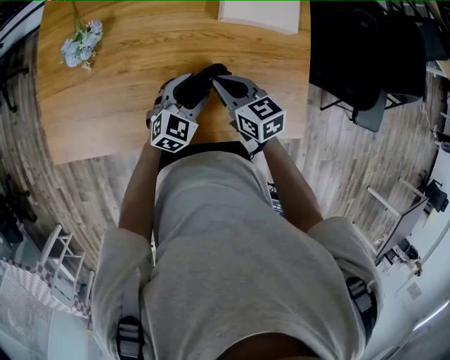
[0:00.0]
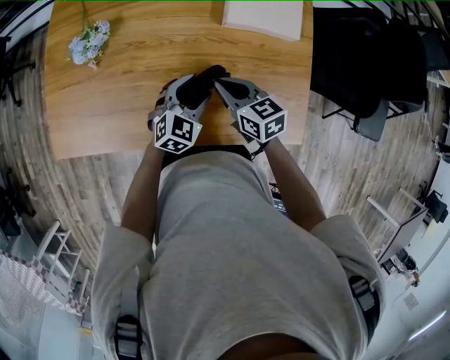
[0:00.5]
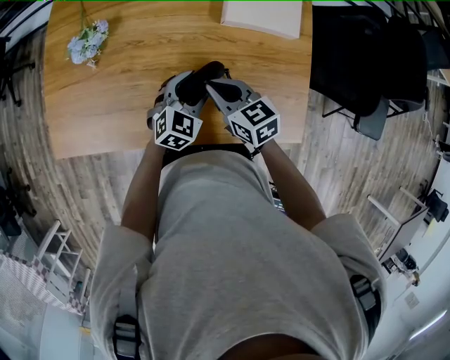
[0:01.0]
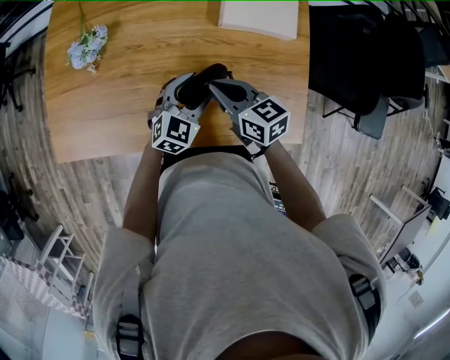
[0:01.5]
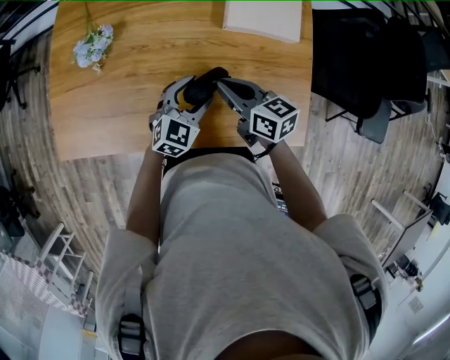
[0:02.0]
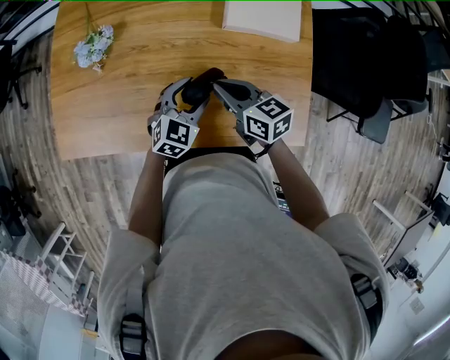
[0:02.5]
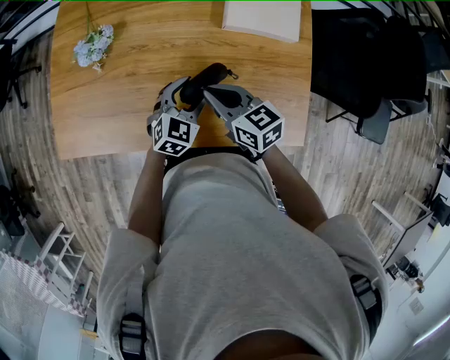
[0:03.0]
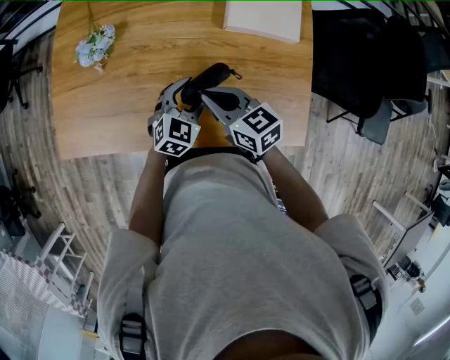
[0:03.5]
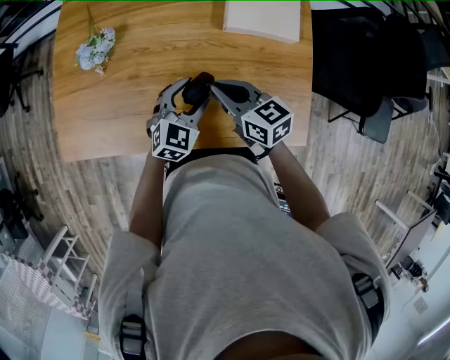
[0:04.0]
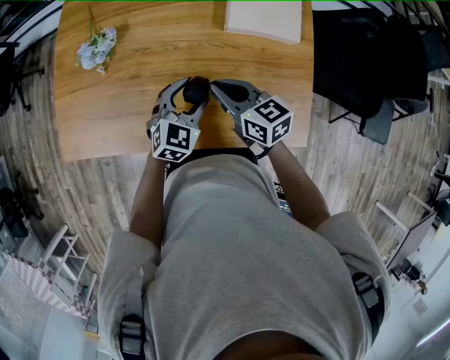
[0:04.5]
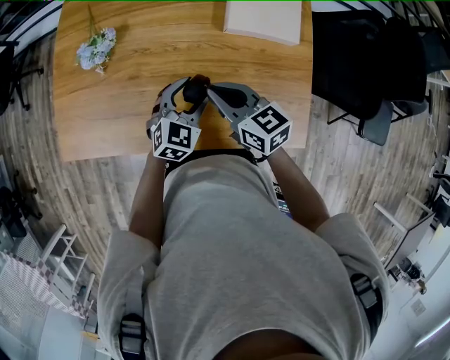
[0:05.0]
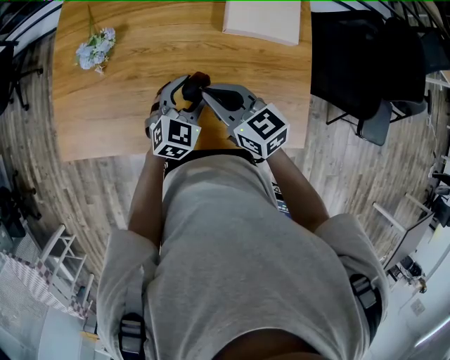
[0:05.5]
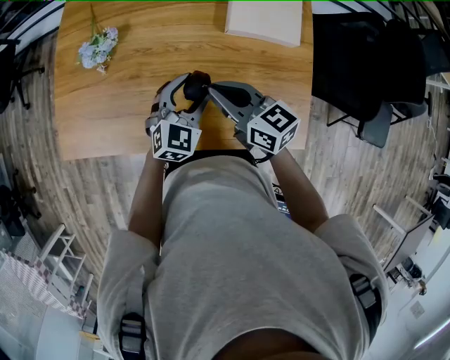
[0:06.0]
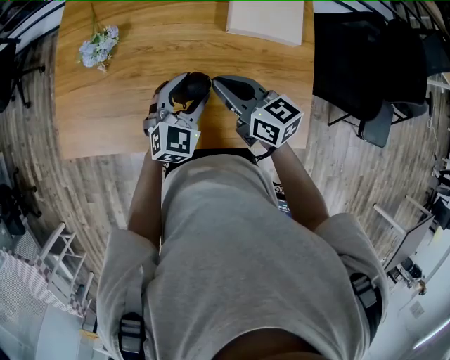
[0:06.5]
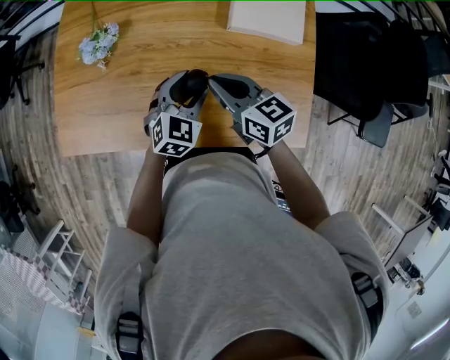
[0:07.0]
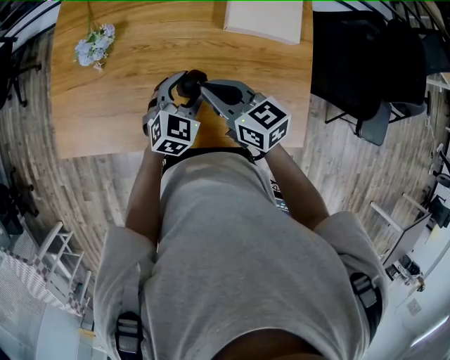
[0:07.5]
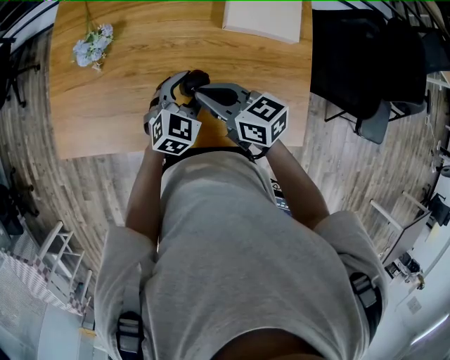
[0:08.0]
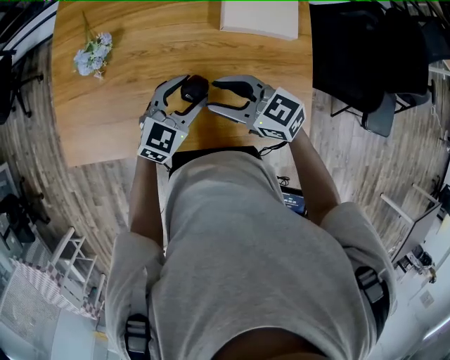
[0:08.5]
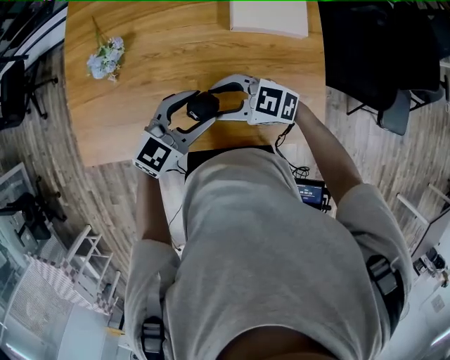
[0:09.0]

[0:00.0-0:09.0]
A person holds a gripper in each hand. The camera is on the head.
0:00.0 to 0:02.0: There are only small adjustments of the grippers.
0:02.0 to 0:04.5: The grippers stay close to where they were, moving slightly.
0:04.5 to 0:07.0: The grippers move only a little.
0:07.0 to 0:09.0: The left gripper travels upward by about 5 cm, and turns by approximately 30 degrees. The right gripper shifts by about 5 cm, turns by about 50 degrees, and opens its fingers.

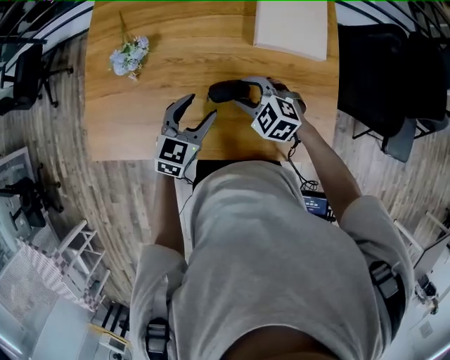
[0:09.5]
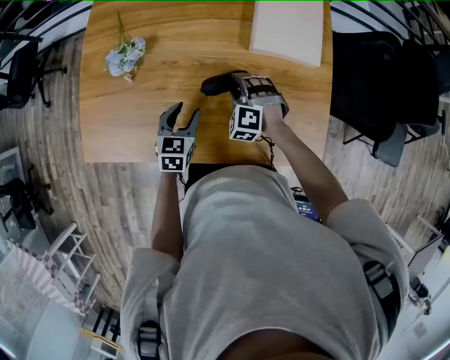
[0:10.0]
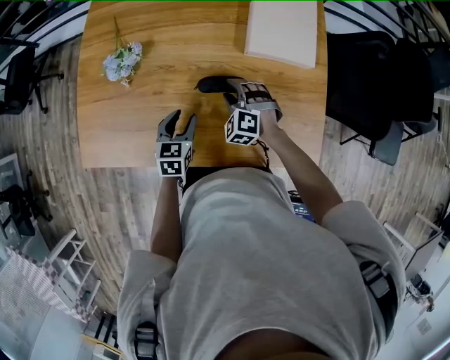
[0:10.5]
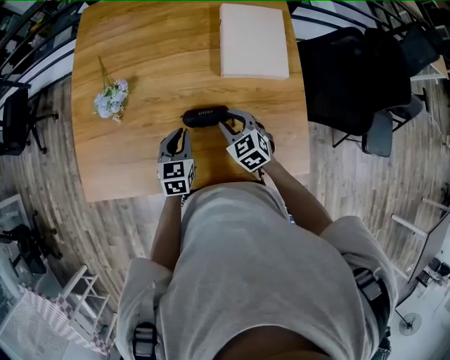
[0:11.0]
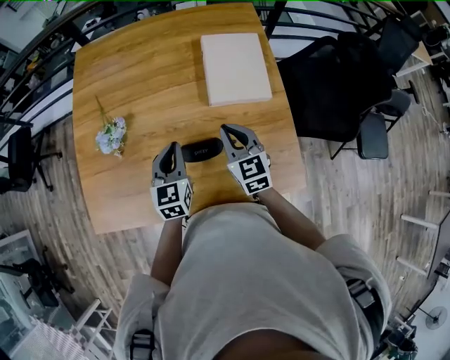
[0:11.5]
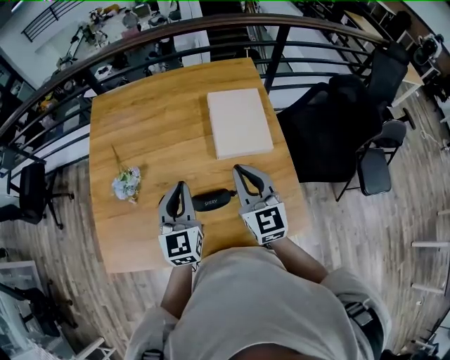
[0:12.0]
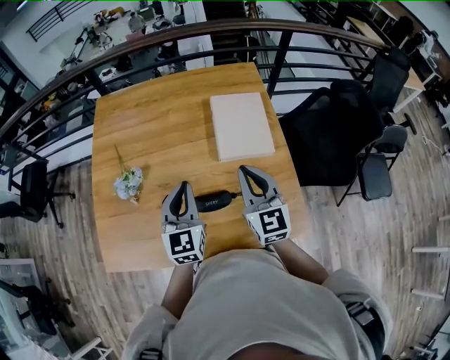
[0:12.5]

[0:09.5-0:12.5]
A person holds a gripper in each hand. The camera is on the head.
0:09.5 to 0:11.0: The right gripper changes its angle by roughly 30 degrees. Meanwhile the left gripper closes its fingers.
0:11.0 to 0:12.5: The two grippers go some 20 cm upward. The left gripper swivels some 30 degrees. Meanwhile the right gripper angles its fingers upward, by some 30 degrees, and closes its fingers.

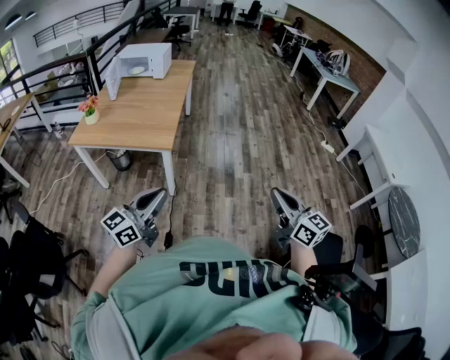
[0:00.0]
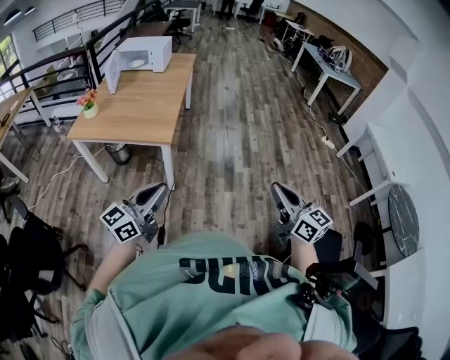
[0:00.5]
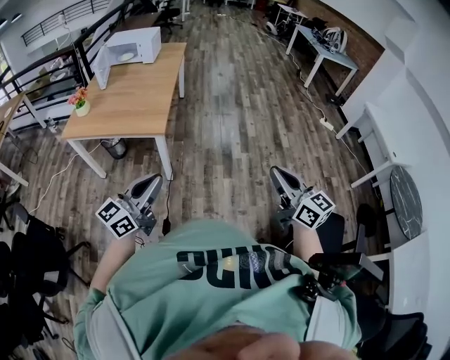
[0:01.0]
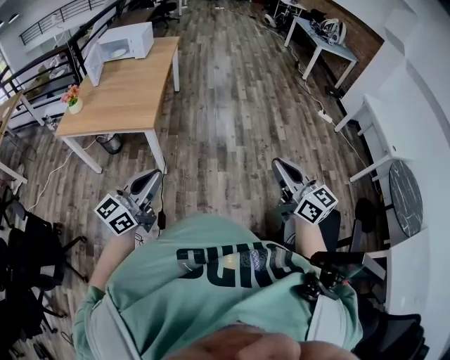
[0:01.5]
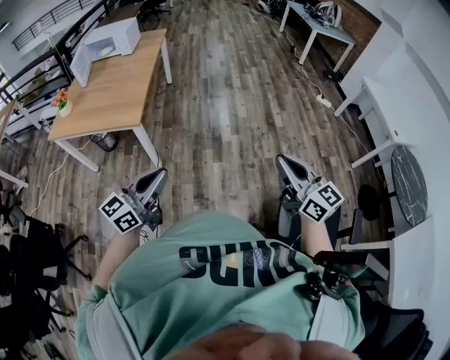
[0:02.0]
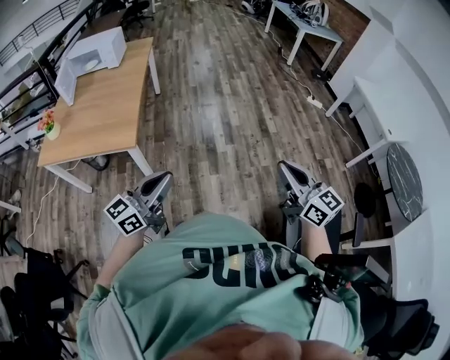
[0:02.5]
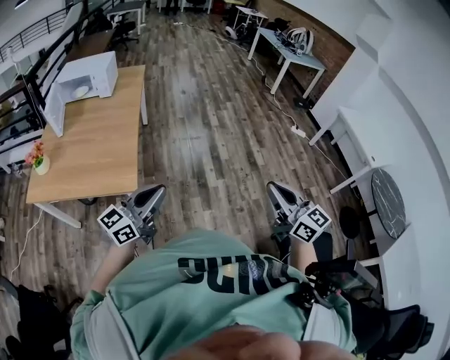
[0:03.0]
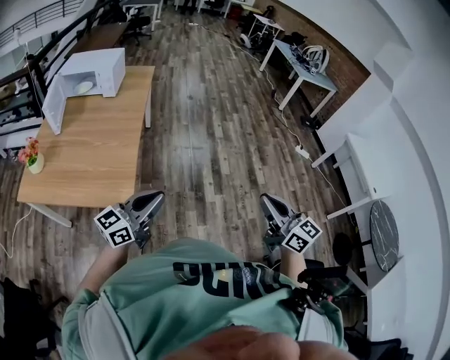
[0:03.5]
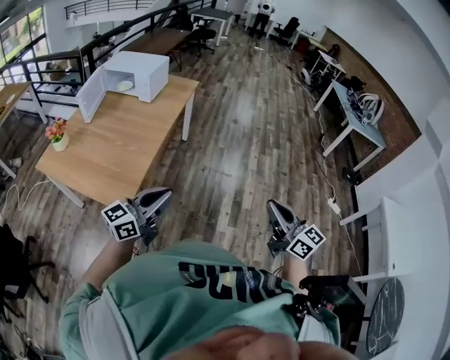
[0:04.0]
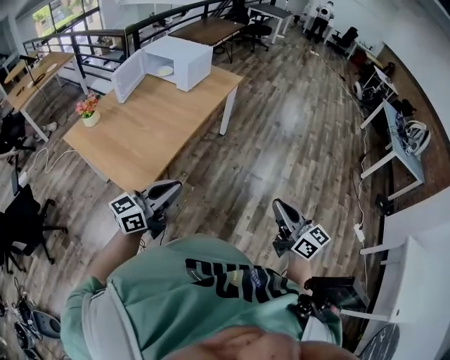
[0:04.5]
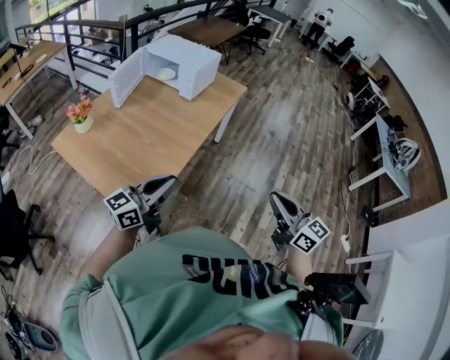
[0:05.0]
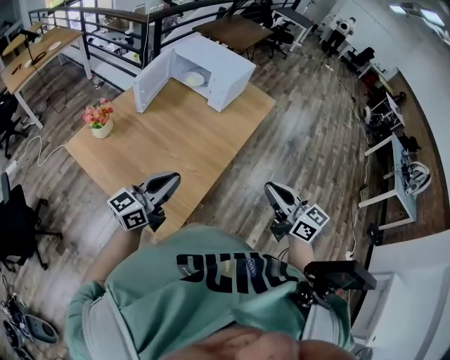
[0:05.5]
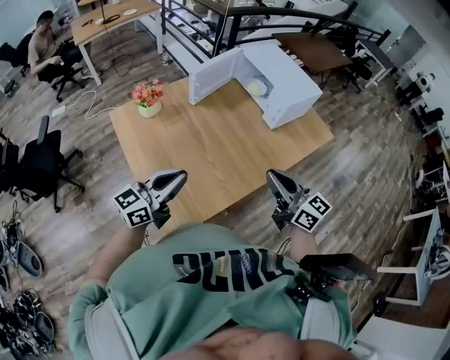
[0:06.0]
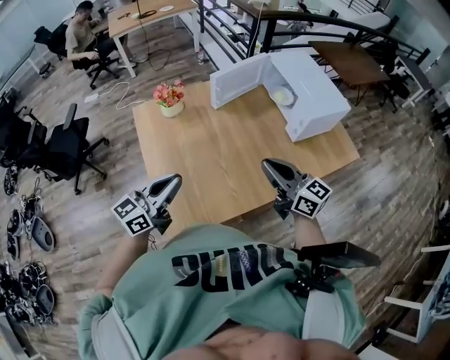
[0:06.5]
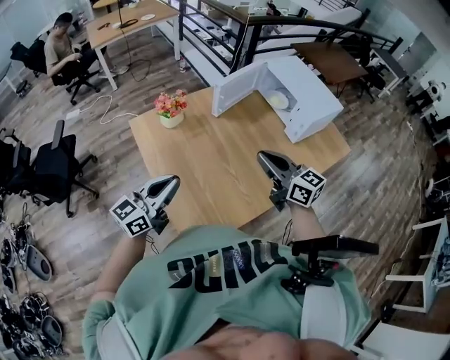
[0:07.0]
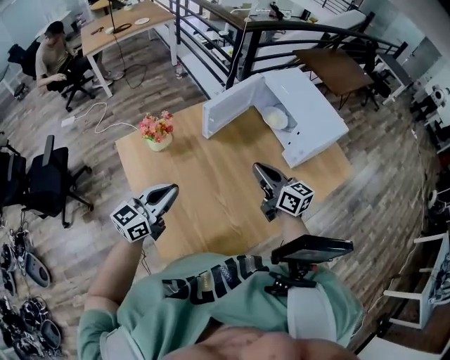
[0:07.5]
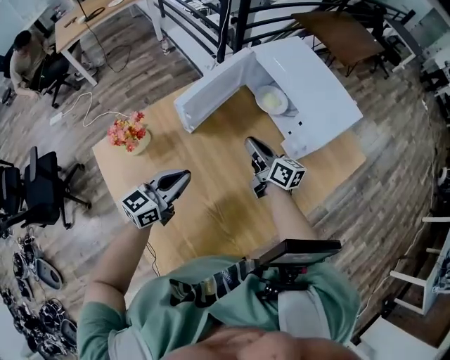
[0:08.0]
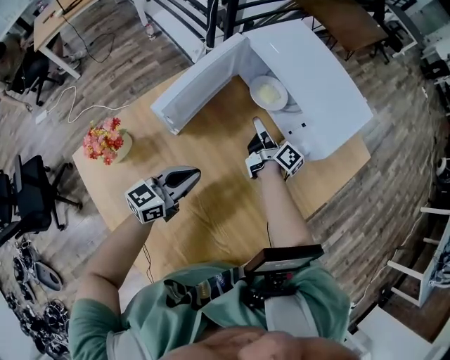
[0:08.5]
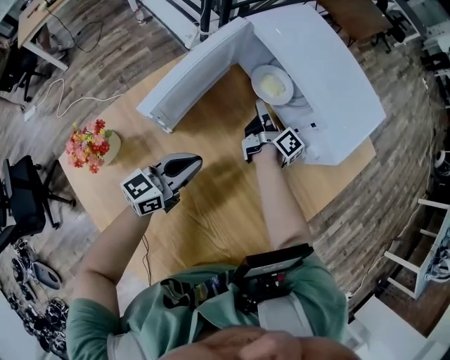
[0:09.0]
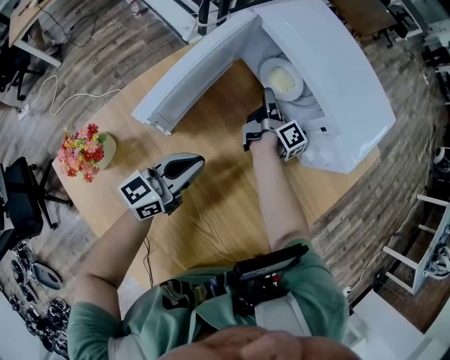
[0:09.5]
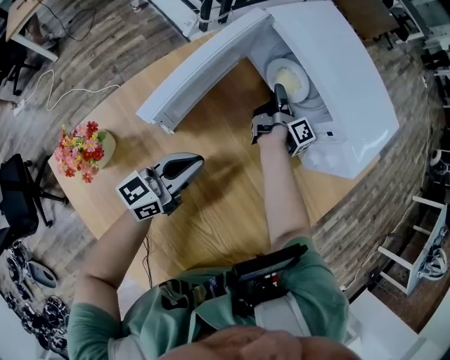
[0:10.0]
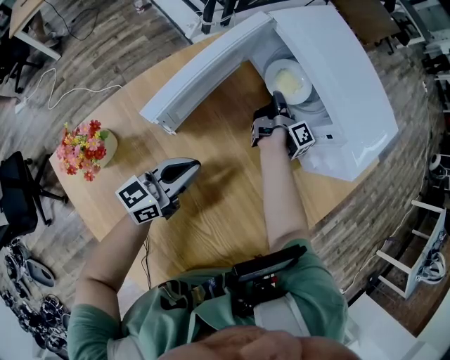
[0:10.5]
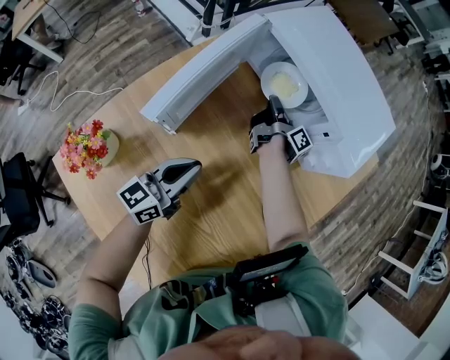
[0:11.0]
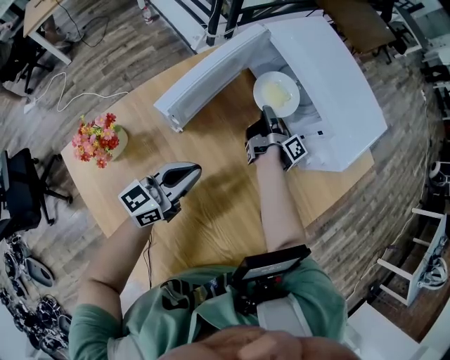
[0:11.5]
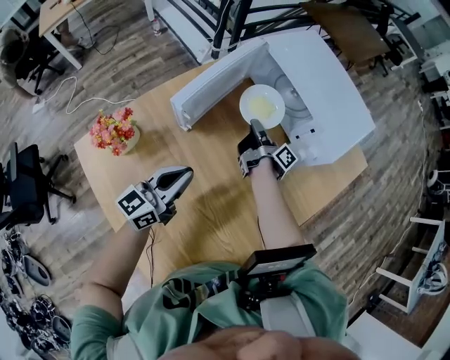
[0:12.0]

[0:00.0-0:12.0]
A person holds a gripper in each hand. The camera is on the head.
0:00.0 to 0:02.0: Both grippers move to the right, some 15 cm.
0:02.0 to 0:04.0: The pair of grippers is taken forward, about 50 cm.
0:04.0 to 0:06.0: The two grippers travel together, some 50 cm. The right gripper rotates roughly 50 degrees. Meanwhile the left gripper changes its angle by roughly 40 degrees.
0:06.0 to 0:08.0: Both grippers move forward and downward, about 40 cm. The right gripper turns by some 30 degrees.
0:08.0 to 0:10.0: The right gripper heads forward and downward, covering about 30 cm, swivels roughly 60 degrees, and opens up, while the left gripper heads forward and downward, covering approximately 20 cm.
0:10.0 to 0:12.0: Both grippers travel together backward and upward, roughly 15 cm. The right gripper closes up.

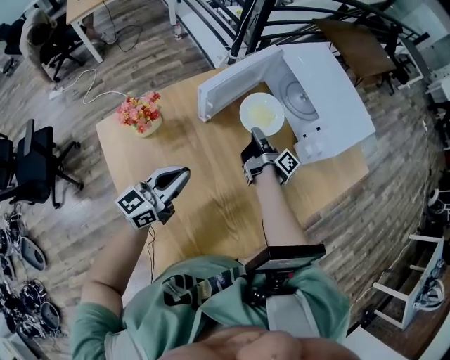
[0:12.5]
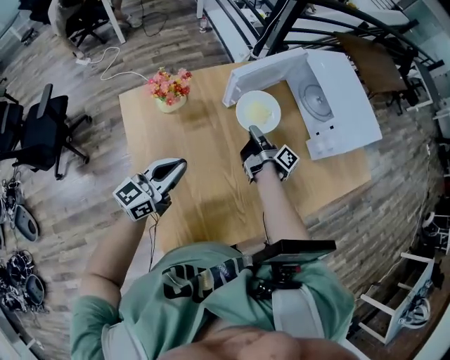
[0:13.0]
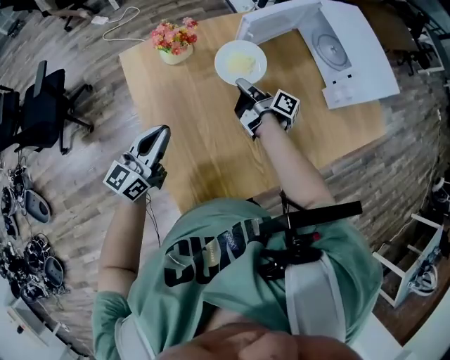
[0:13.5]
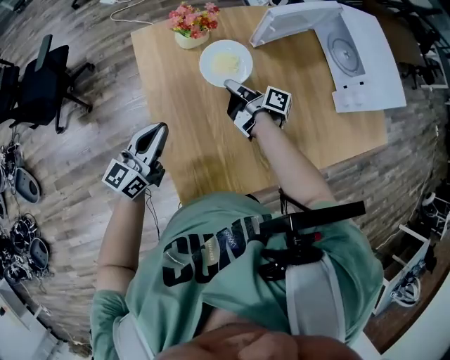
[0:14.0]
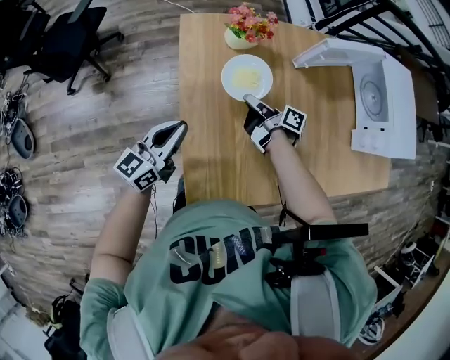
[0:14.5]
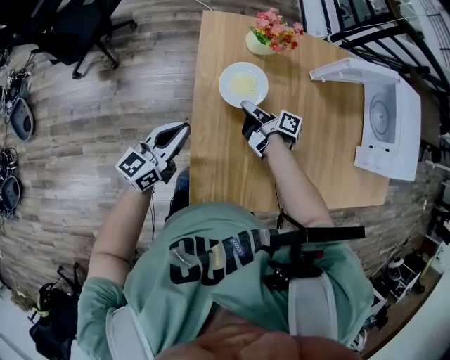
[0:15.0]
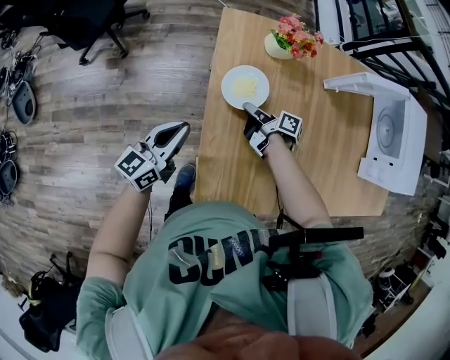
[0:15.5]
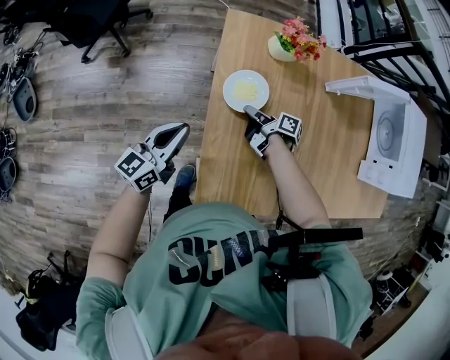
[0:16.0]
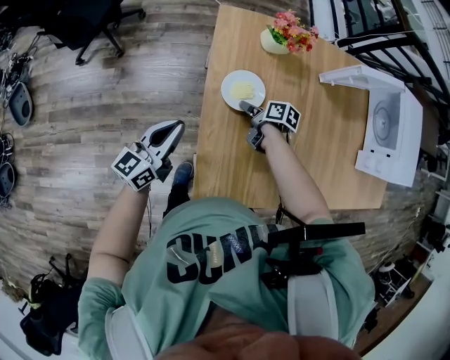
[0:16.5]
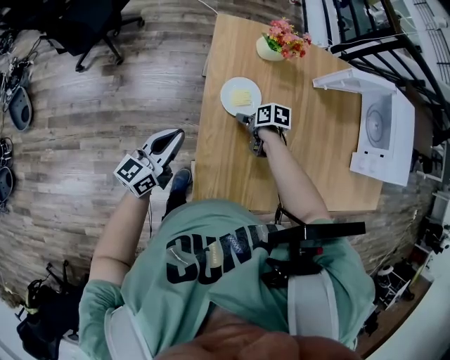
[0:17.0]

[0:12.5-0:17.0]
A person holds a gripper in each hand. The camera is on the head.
0:12.5 to 0:14.5: The left gripper changes place by roughly 30 cm, and turns by some 30 degrees; the right gripper changes place by approximately 35 cm, and turns by some 50 degrees.
0:14.5 to 0:17.0: The left gripper goes some 10 cm to the left; the right gripper moves downward and to the left, about 10 cm, tilts its fingers roughly 50 degrees downward, and opens.
